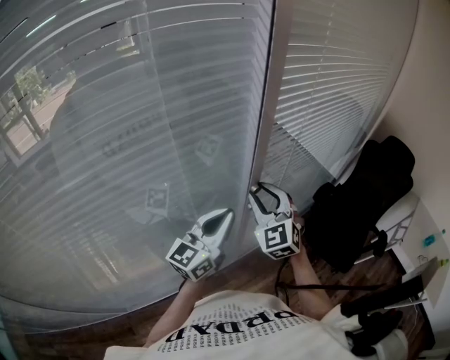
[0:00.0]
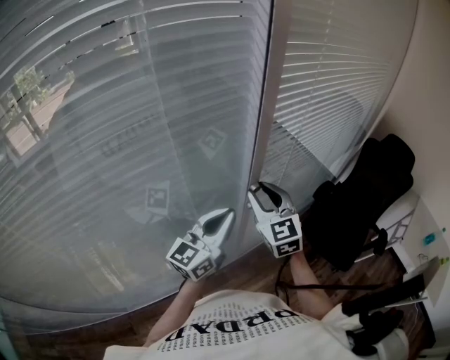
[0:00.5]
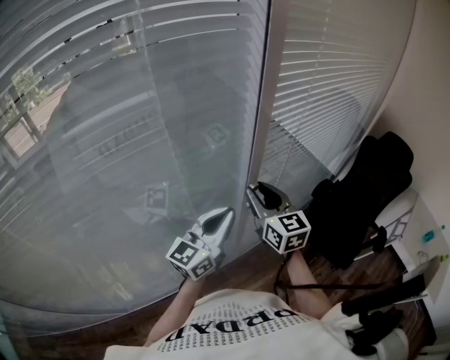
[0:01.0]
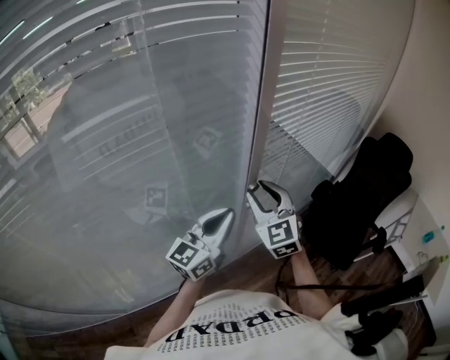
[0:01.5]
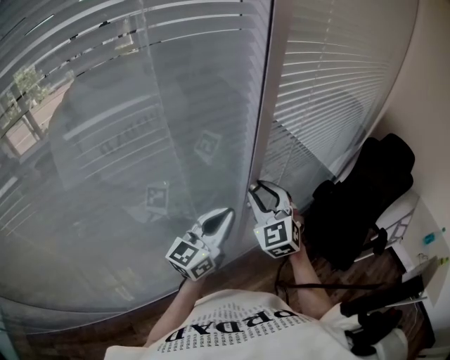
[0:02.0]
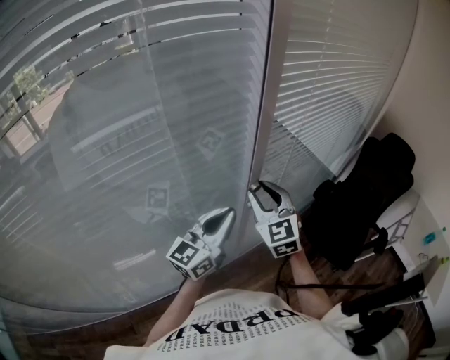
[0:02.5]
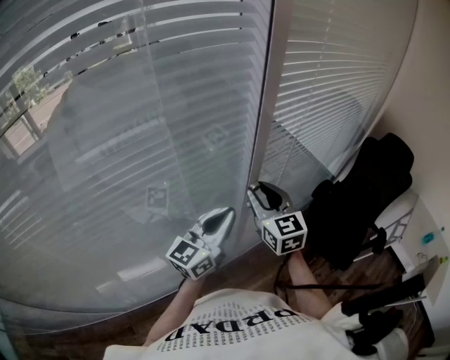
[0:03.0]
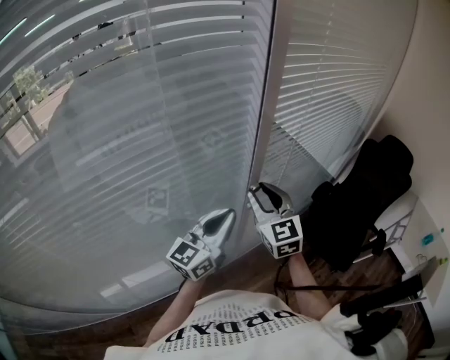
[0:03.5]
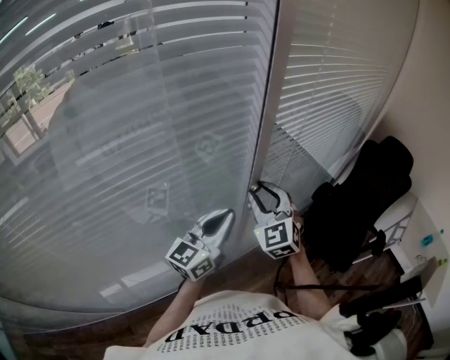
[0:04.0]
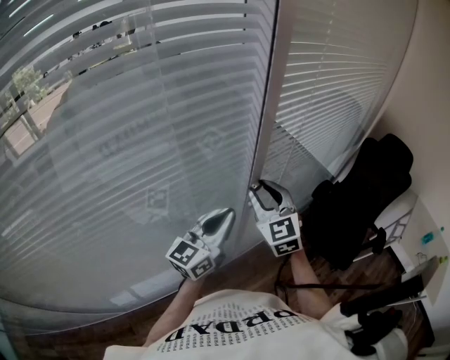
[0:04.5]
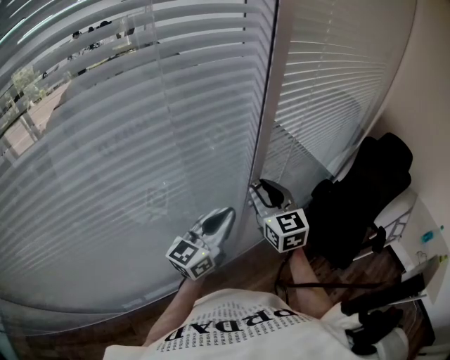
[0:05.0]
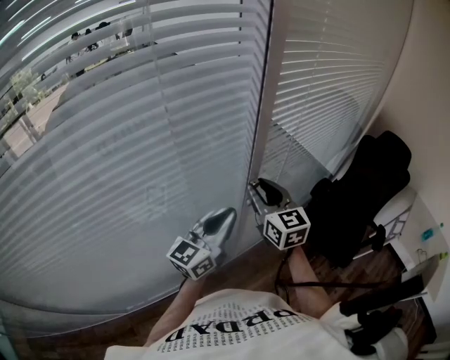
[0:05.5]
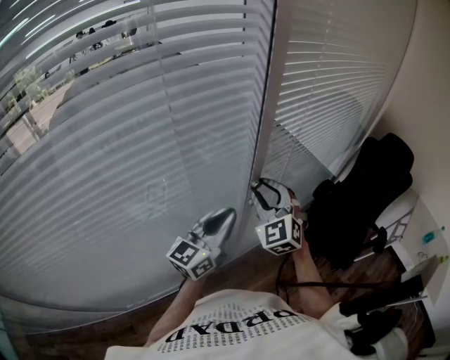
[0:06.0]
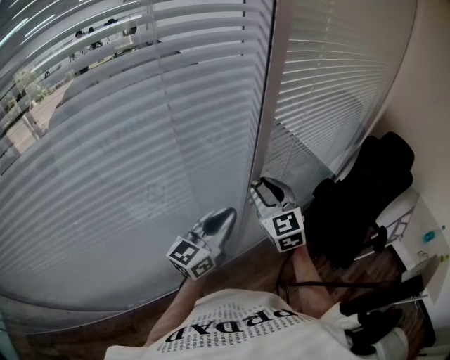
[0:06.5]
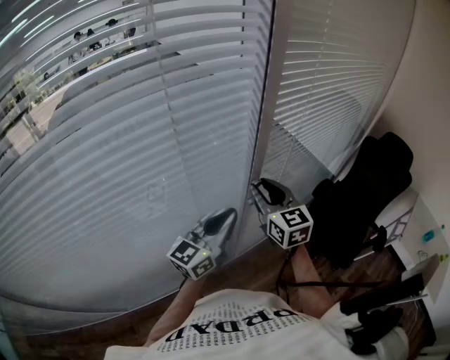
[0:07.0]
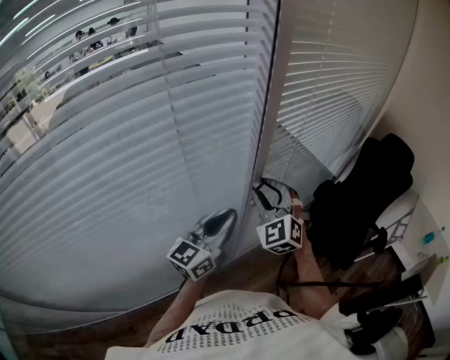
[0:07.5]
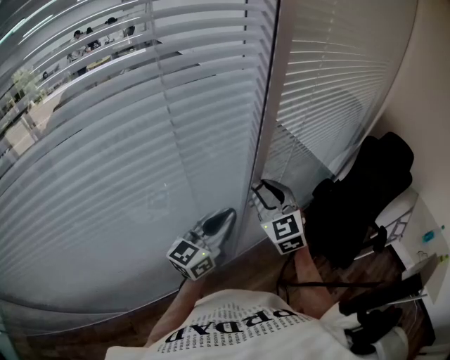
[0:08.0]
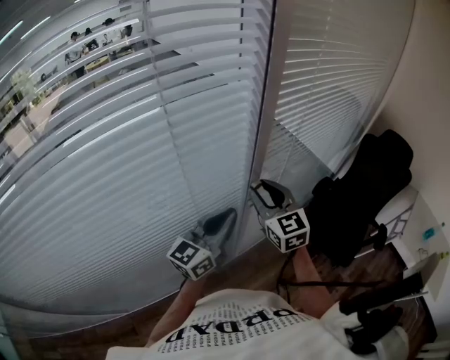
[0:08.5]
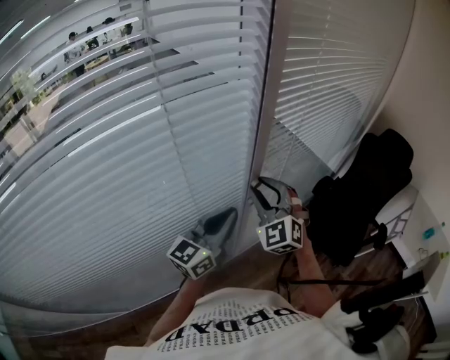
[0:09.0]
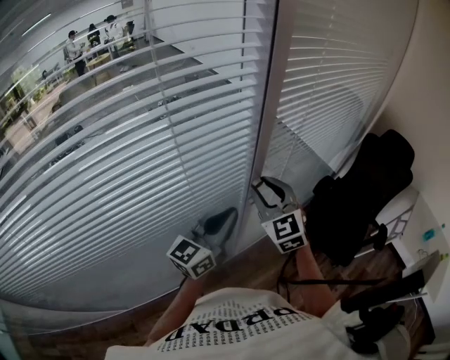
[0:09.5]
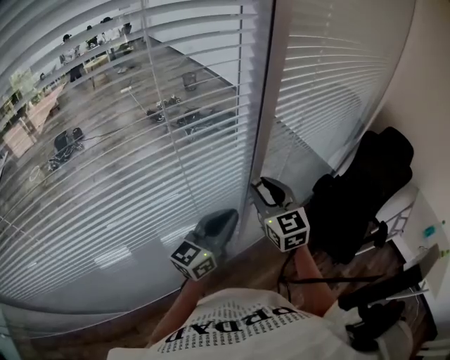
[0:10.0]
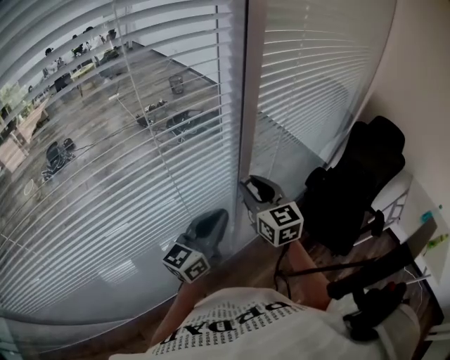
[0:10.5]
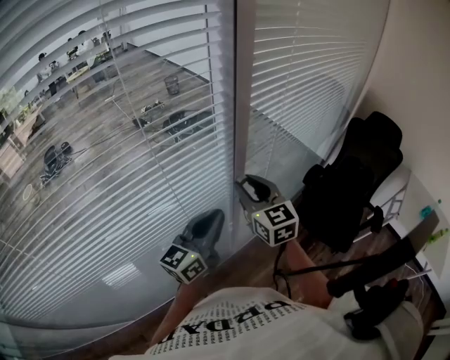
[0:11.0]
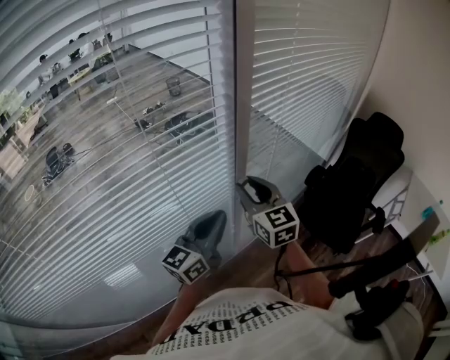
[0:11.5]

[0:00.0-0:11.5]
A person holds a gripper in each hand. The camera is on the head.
0:07.5 to 0:09.5: The right gripper turns by approximately 20 degrees.
0:09.5 to 0:11.5: The right gripper turns by approximately 20 degrees.

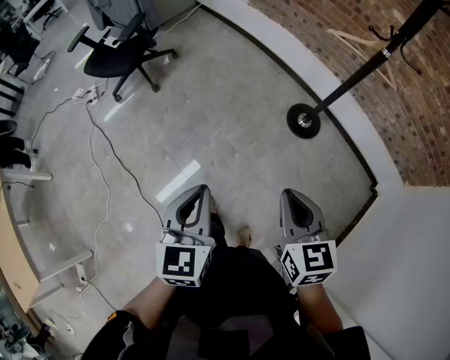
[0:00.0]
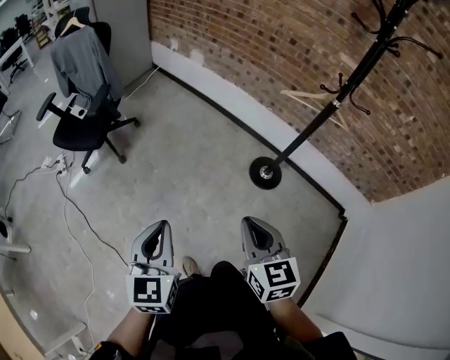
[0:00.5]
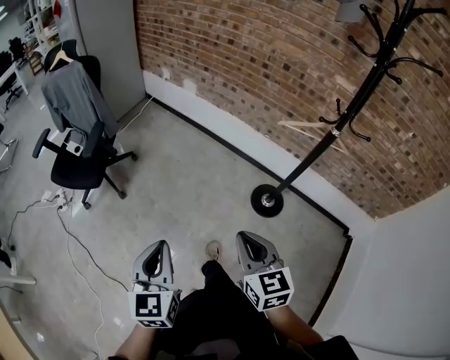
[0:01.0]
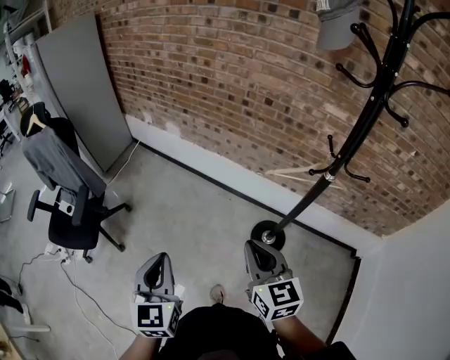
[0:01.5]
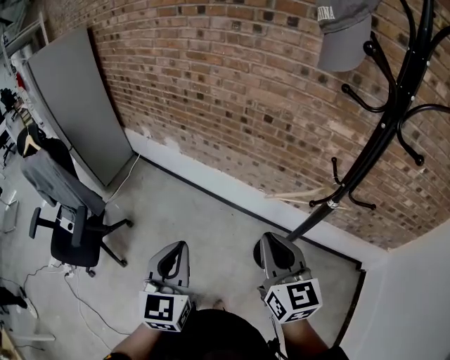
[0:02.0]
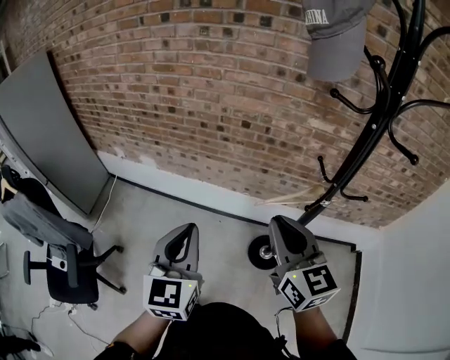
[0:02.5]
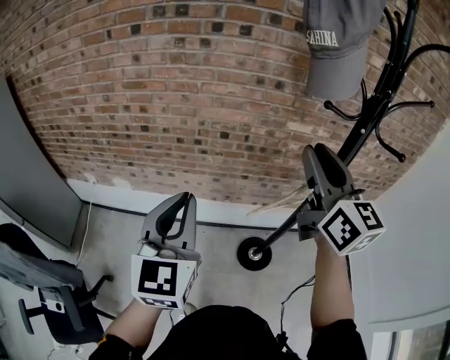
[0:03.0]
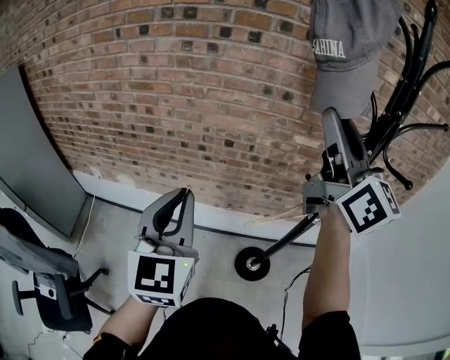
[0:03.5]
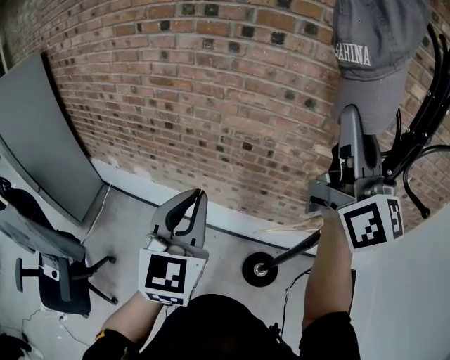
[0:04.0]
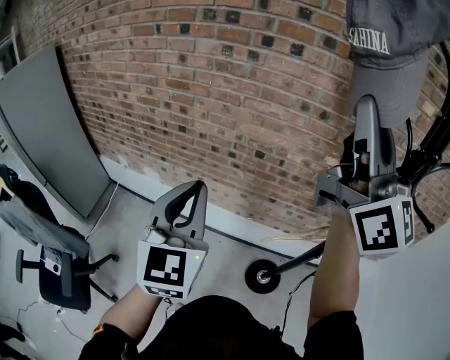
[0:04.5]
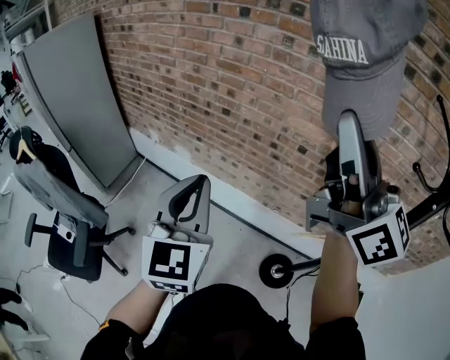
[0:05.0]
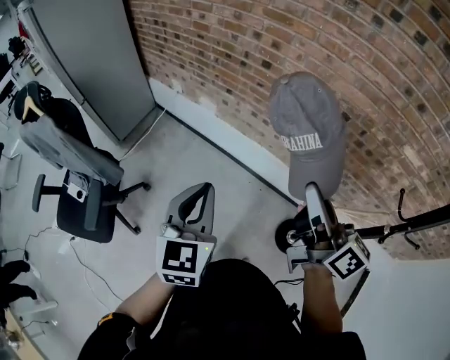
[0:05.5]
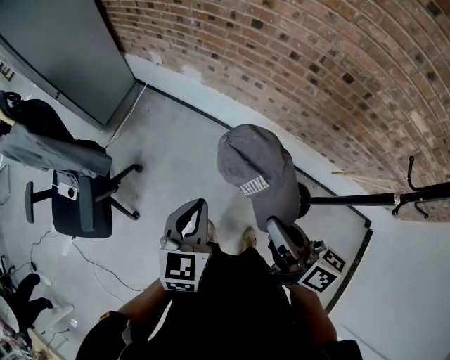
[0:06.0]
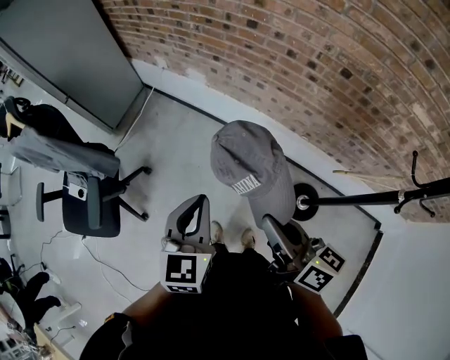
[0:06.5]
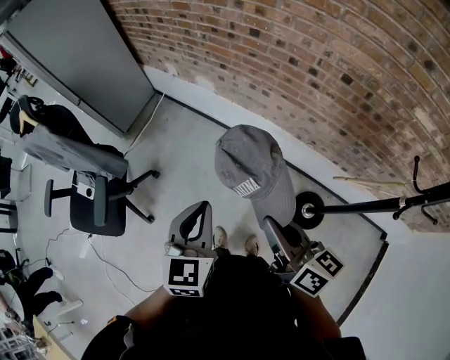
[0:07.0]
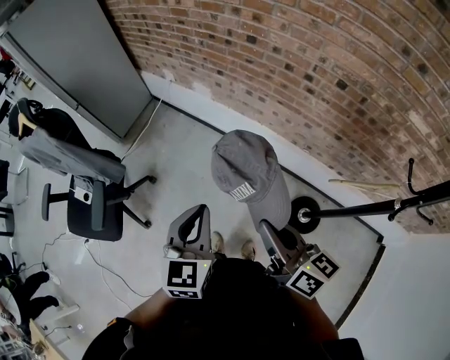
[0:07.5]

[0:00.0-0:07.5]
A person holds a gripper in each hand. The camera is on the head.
0:00.0 to 0:02.0: Both grippers are carried forward, approximately 50 cm. The right gripper changes its angle by approximately 30 degrees. The left gripper swivels some 20 degrees.
0:02.0 to 0:04.0: The right gripper travels upward by some 35 cm, points its fingers about 40 degrees further upward, and opens, then closes once more, while the left gripper shifts by roughly 30 cm, and changes its angle by about 20 degrees.
0:04.0 to 0:05.5: The right gripper travels downward and to the left by approximately 40 cm, and rotates around the line of its fingers by roughly 50 degrees, clockwise from behind. The left gripper moves to the left and downward, roughly 30 cm, and turns by approximately 30 degrees.
0:05.5 to 0:07.5: The left gripper is displaced downward and backward by roughly 10 cm, while the right gripper travels downward, backward and to the left by roughly 15 cm.

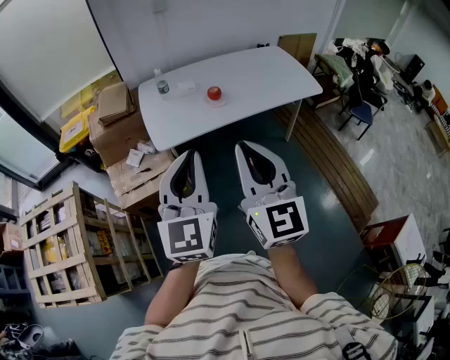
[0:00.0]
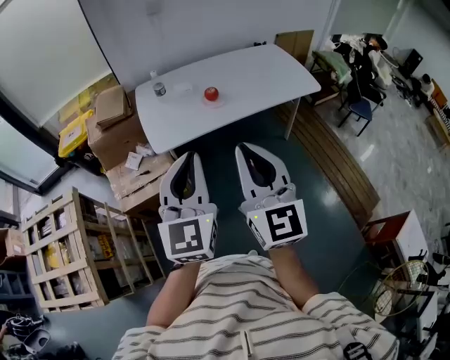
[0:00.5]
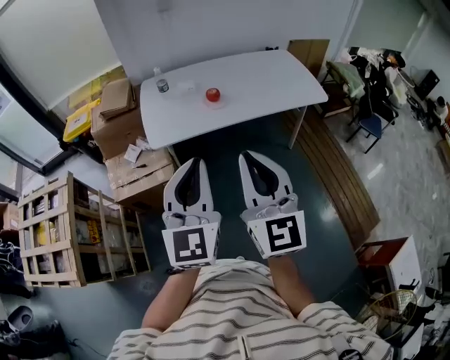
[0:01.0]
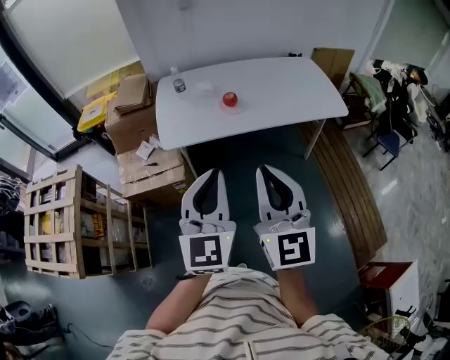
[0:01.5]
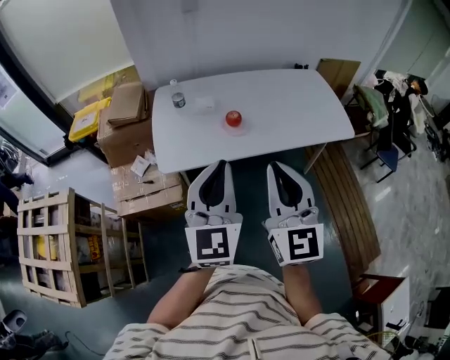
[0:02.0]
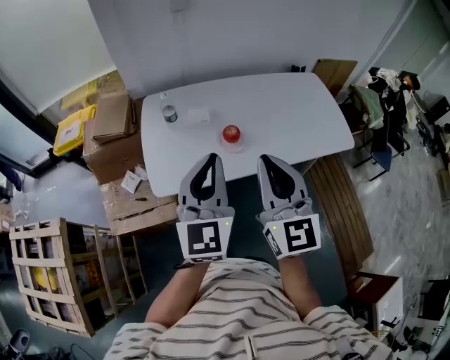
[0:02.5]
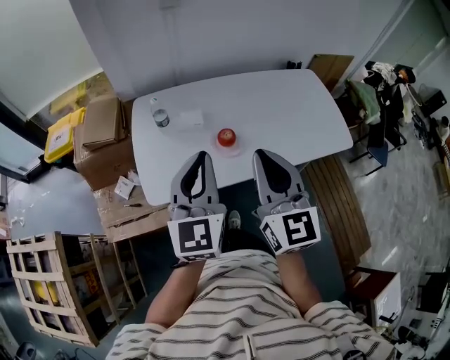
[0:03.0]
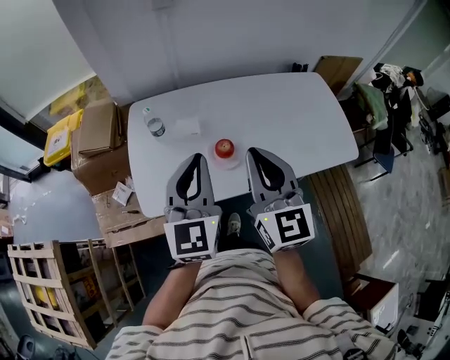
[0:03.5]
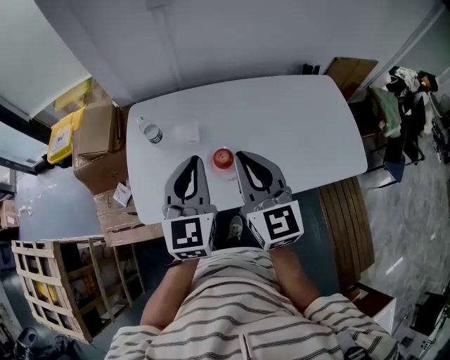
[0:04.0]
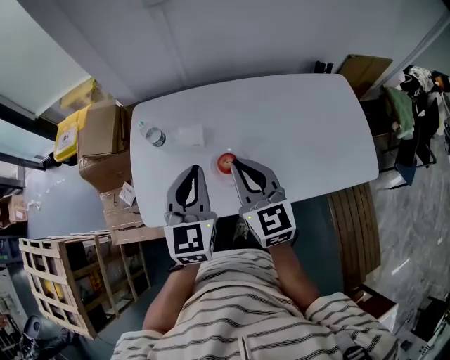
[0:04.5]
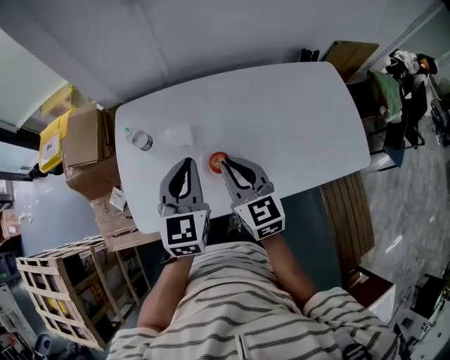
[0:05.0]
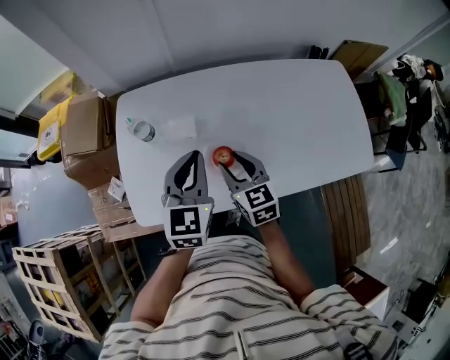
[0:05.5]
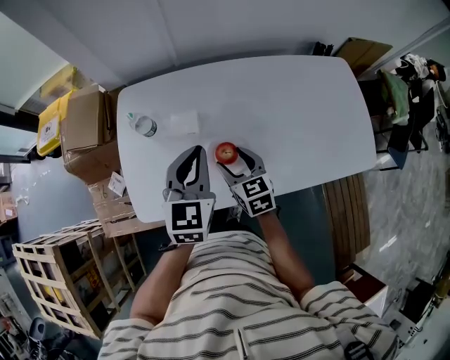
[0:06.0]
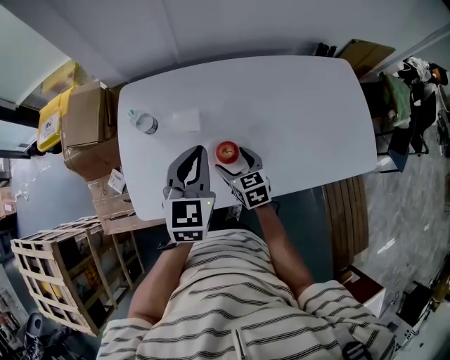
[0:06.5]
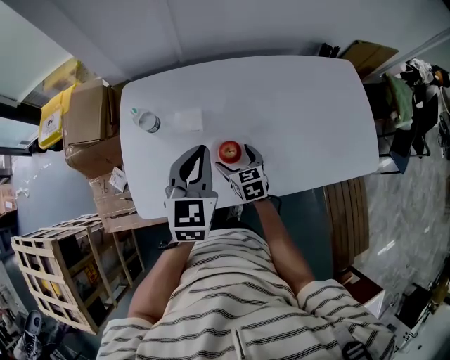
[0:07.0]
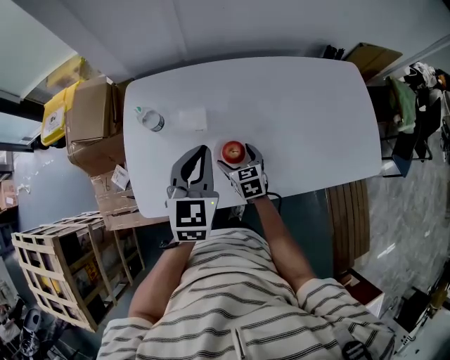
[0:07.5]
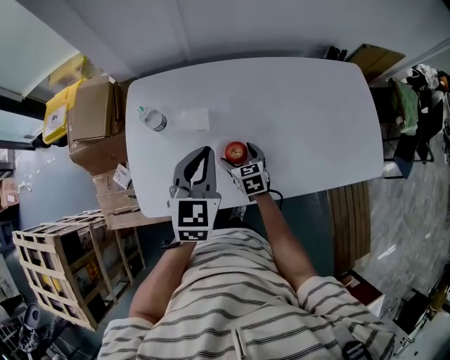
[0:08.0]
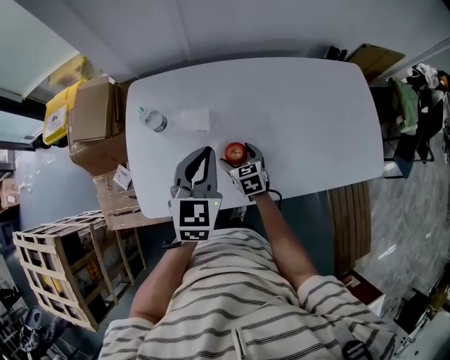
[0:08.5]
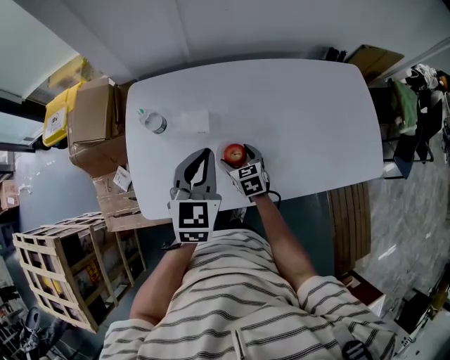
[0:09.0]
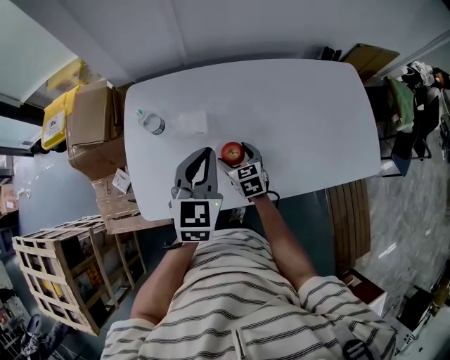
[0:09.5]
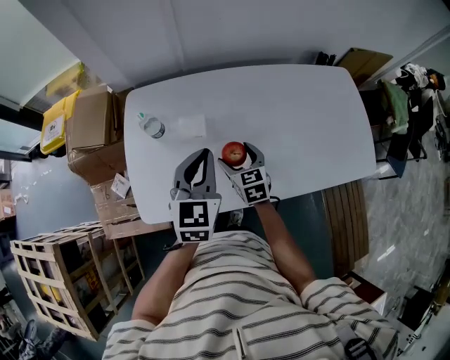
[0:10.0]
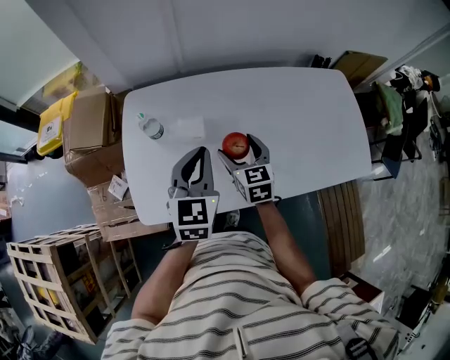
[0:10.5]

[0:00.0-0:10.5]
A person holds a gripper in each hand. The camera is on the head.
0:00.0 to 0:02.0: Both grippers move forward and to the right, roughly 20 cm.
0:02.0 to 0:04.0: Both grippers travel together forward, about 35 cm.
0:04.0 to 0:06.5: The left gripper moves downward and forward, roughly 15 cm; the right gripper heads downward, covering approximately 30 cm, angles its fingers downward, by approximately 30 degrees, and opens its fingers.
0:06.5 to 0:08.5: The right gripper moves downward, about 10 cm.
0:08.5 to 0:10.5: The right gripper heads upward, covering some 15 cm.
